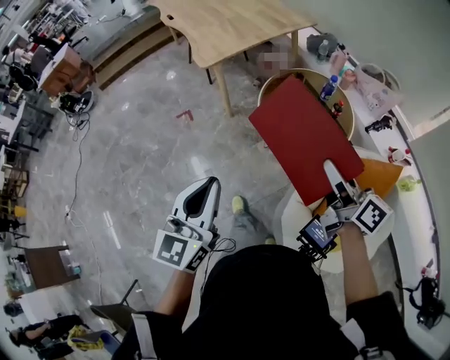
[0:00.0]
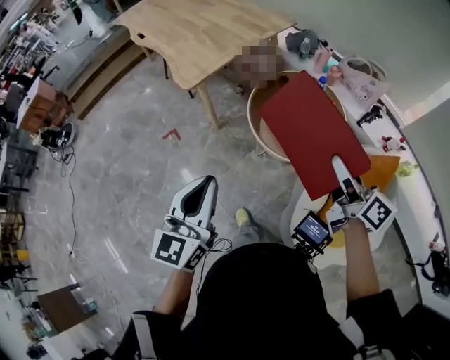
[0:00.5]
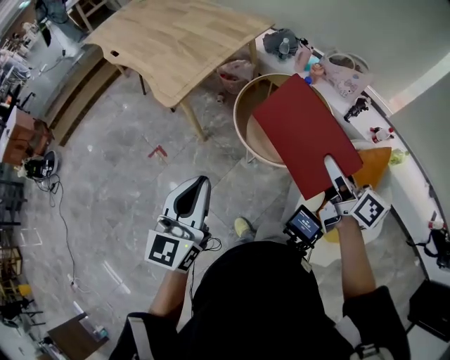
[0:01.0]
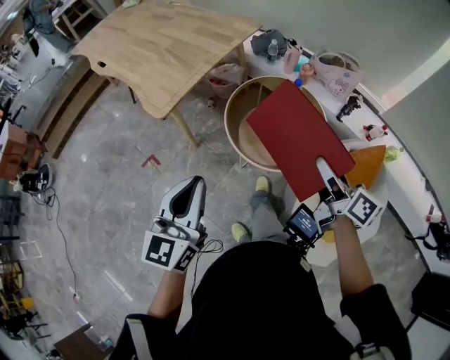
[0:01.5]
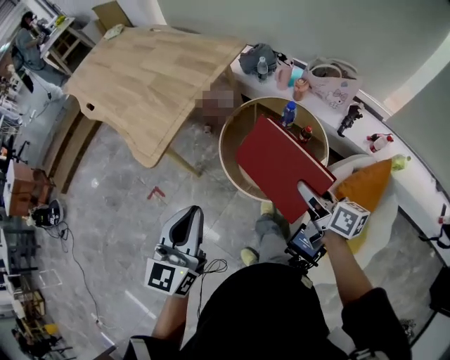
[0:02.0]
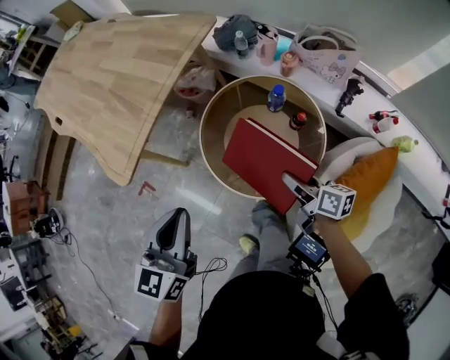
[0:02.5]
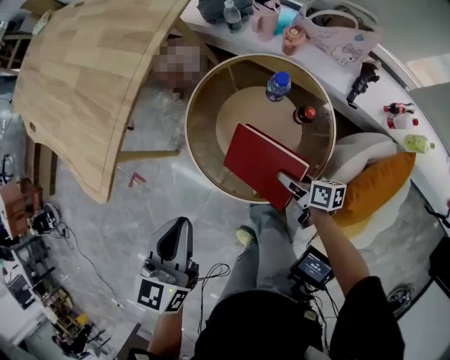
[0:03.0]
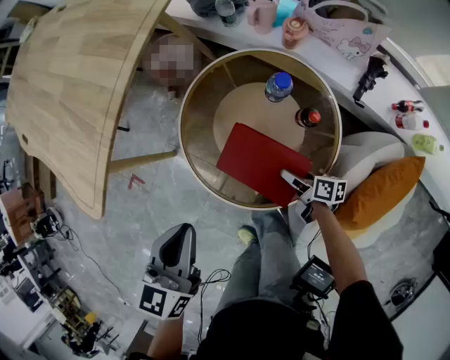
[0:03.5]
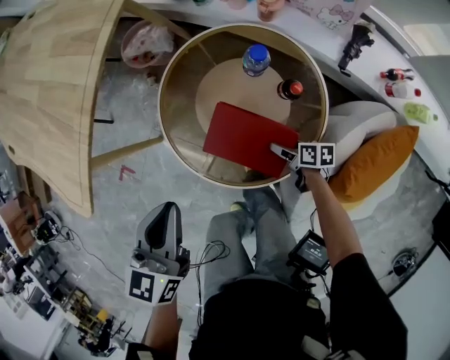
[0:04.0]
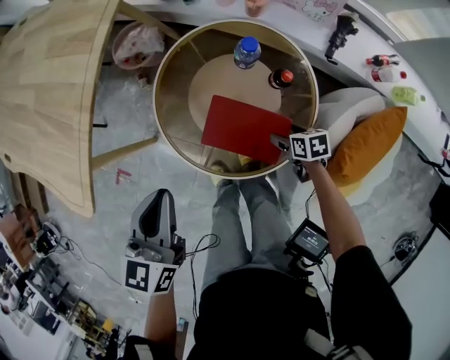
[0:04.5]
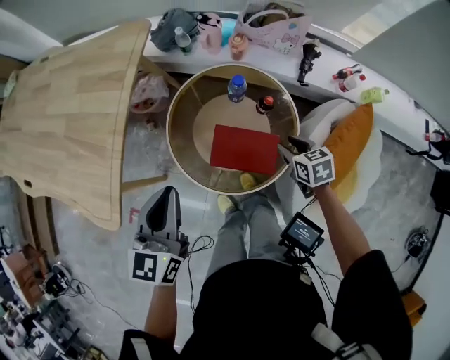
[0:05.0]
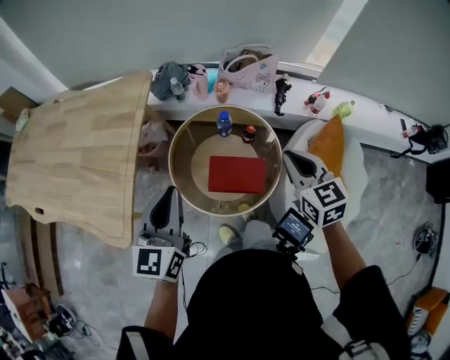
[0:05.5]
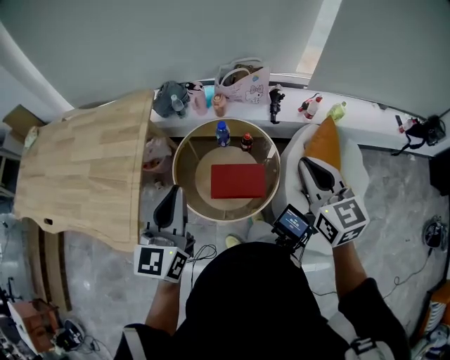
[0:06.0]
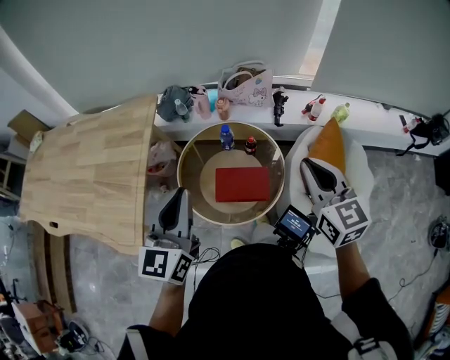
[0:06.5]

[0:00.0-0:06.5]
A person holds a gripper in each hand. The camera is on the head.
0:00.0 to 0:02.0: The left gripper heads forward, covering approximately 30 cm, and changes its angle by roughly 20 degrees. The right gripper is displaced forward and downward by approximately 25 cm, and swivels approximately 20 degrees.
0:02.0 to 0:04.5: The left gripper is displaced forward, downward and to the right by about 30 cm, and swivels approximately 20 degrees, while the right gripper goes approximately 40 cm downward, tilts its fingers approximately 50 degrees downward, and opens up.
0:04.5 to 0:06.5: The right gripper moves upward, roughly 60 cm, angles its fingers upward, by about 50 degrees, and closes its fingers, while the left gripper heads upward, covering some 25 cm, and swivels approximately 30 degrees.

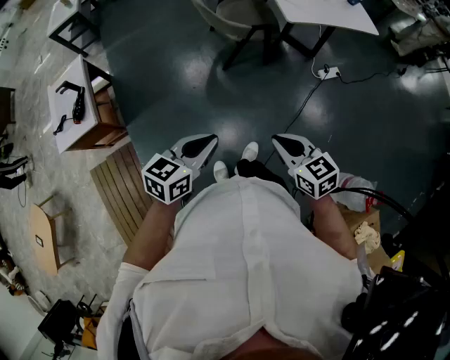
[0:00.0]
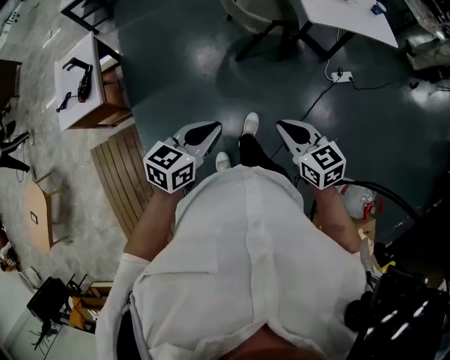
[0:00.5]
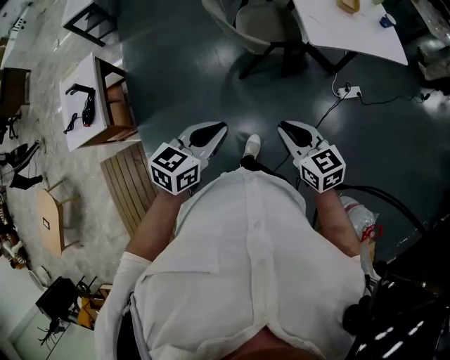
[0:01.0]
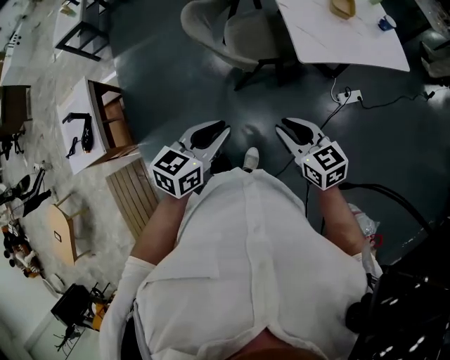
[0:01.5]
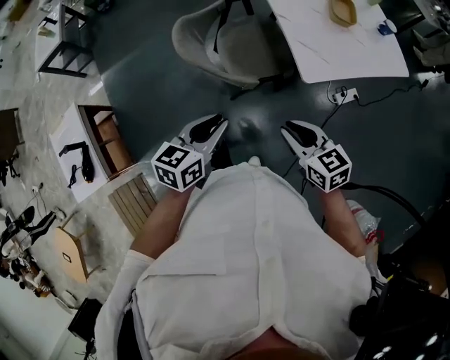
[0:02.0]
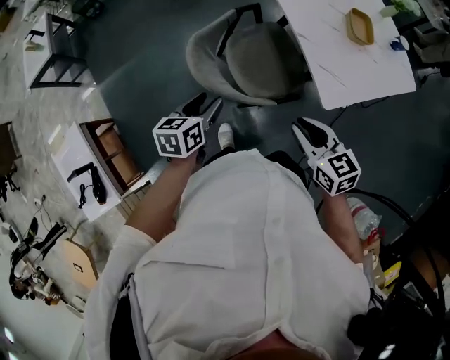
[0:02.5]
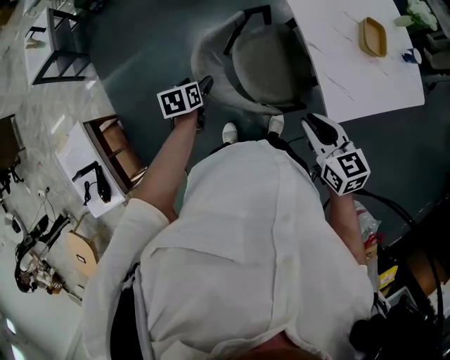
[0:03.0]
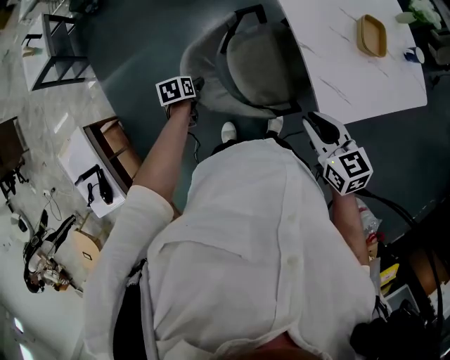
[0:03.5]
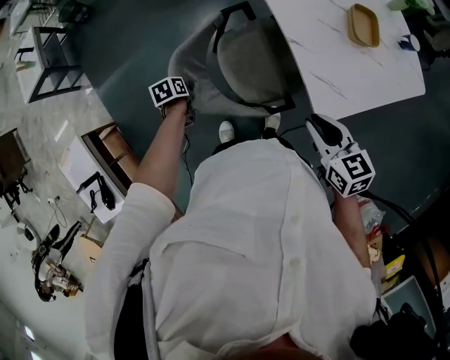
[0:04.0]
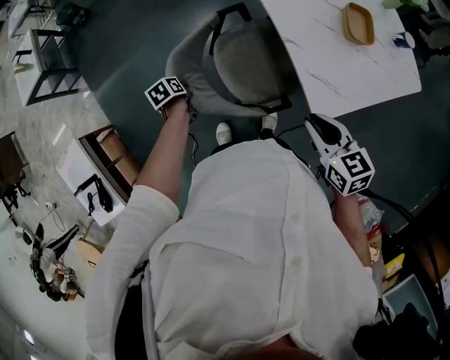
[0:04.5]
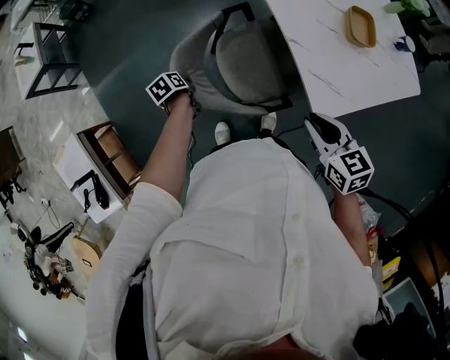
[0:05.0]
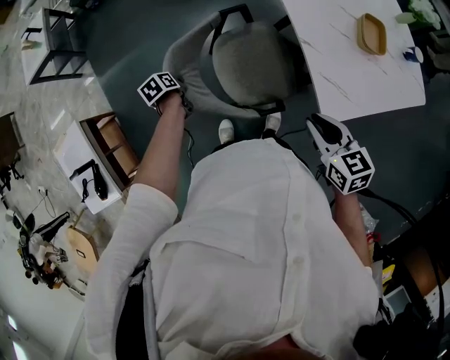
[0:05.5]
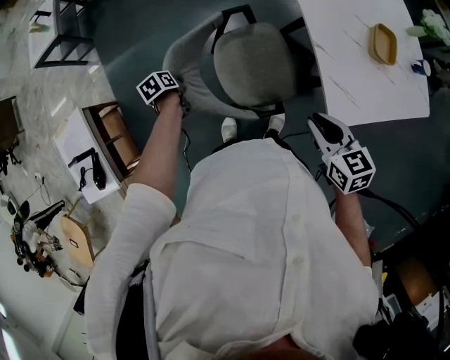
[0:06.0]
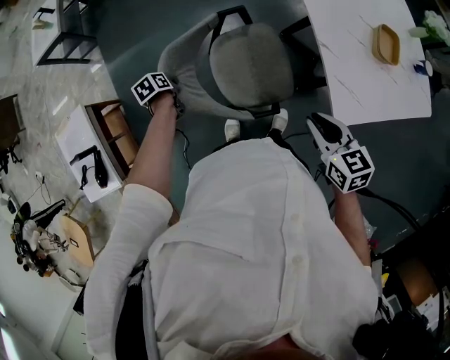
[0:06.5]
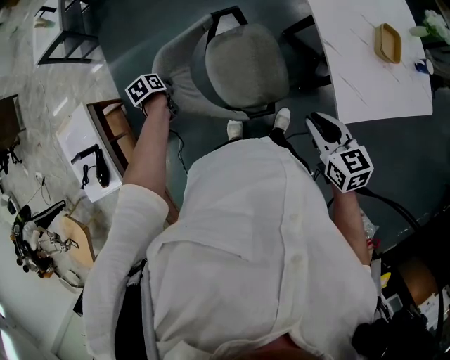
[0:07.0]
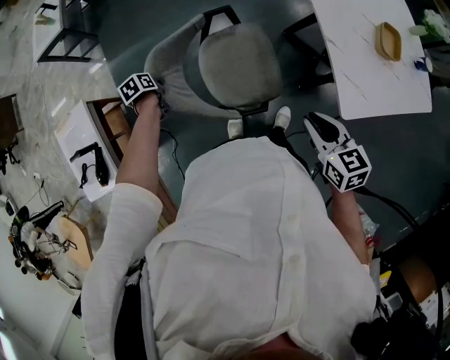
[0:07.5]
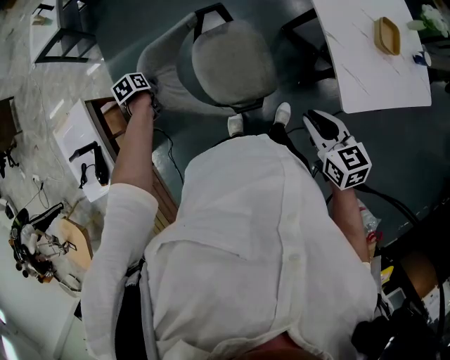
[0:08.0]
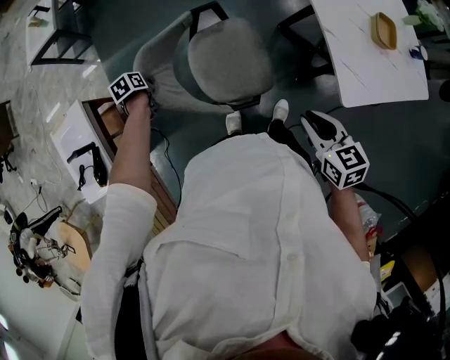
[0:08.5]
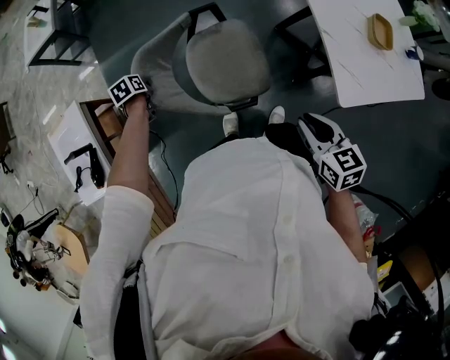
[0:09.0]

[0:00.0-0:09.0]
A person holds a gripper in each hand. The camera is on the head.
0:00.0 to 0:02.0: The pair of grippers is taken forward, roughly 40 cm.
0:02.0 to 0:04.5: The right gripper shifts roughly 20 cm forward; the left gripper travels forward, downward and to the left by roughly 50 cm, points its fingers roughly 40 degrees further downward, and opens, then closes once more.
0:04.5 to 0:07.0: The left gripper moves to the left, about 20 cm, while the right gripper goes about 10 cm to the left.
0:07.0 to 0:09.0: The right gripper travels backward and to the left by some 5 cm. Meanwhile the left gripper goes roughly 10 cm to the left.

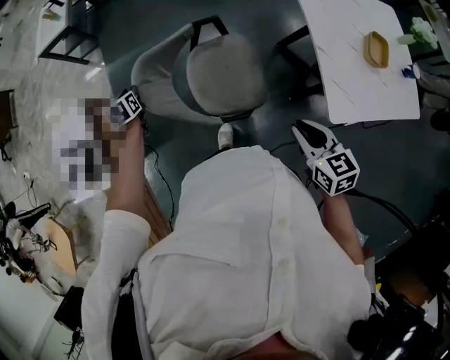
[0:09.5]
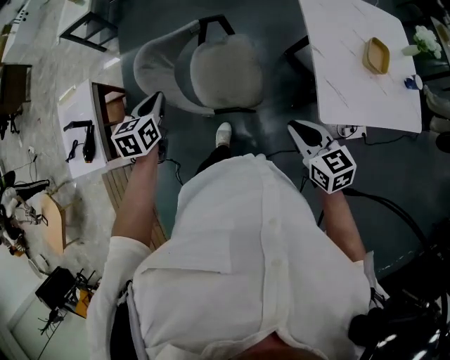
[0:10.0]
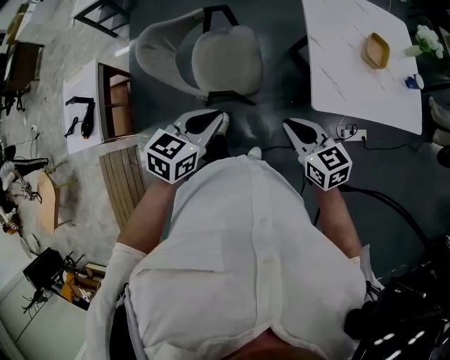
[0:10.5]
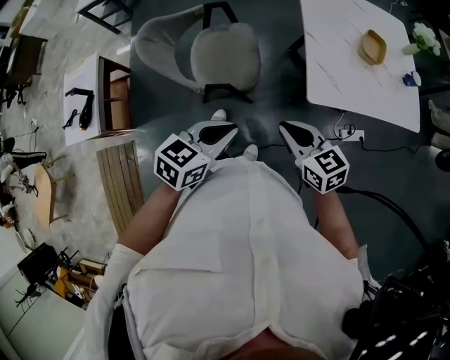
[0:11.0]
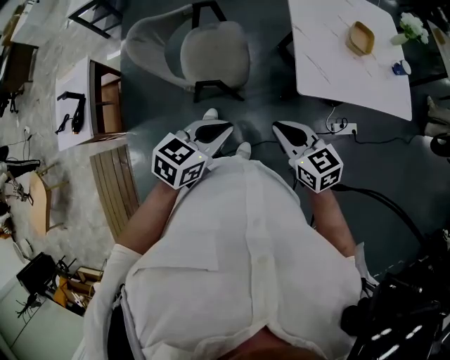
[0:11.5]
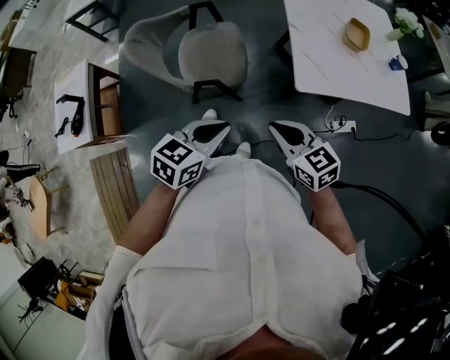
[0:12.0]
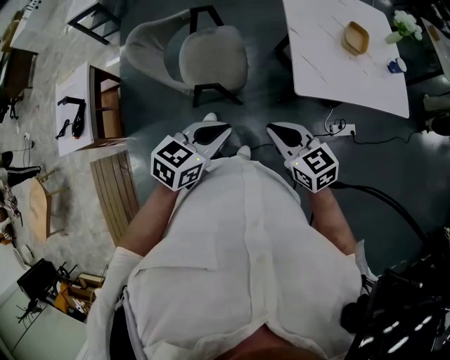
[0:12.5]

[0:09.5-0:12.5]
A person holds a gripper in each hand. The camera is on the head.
0:09.5 to 0:11.0: The right gripper goes about 15 cm backward and to the right, while the left gripper shifts about 60 cm backward, to the right and upward, turns by roughly 50 degrees, and closes.
0:11.0 to 0:12.5: The grippers stay close to where they were, moving slightly.

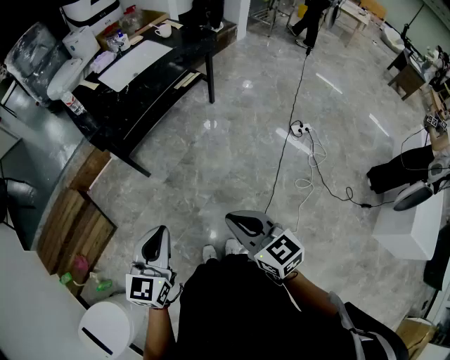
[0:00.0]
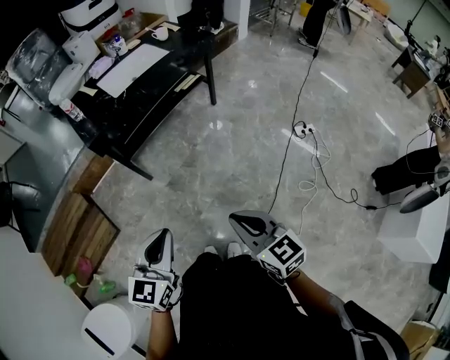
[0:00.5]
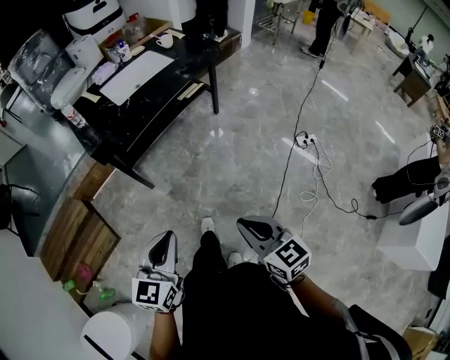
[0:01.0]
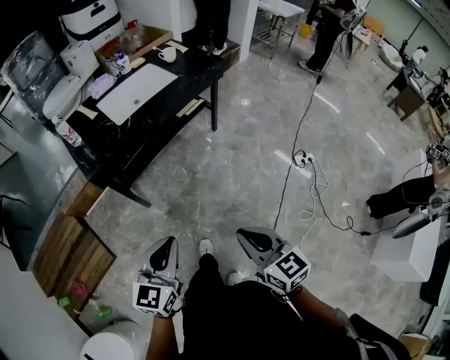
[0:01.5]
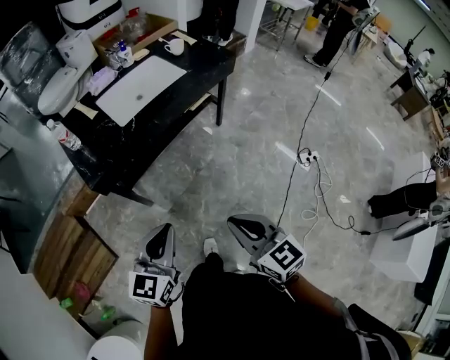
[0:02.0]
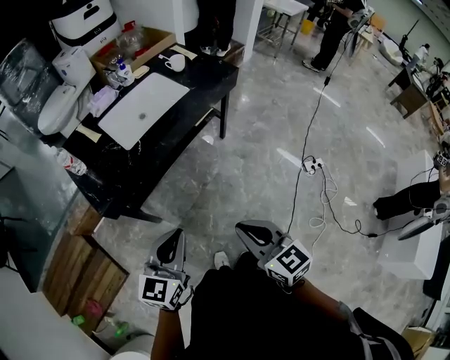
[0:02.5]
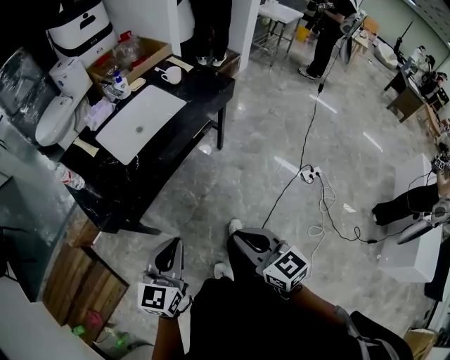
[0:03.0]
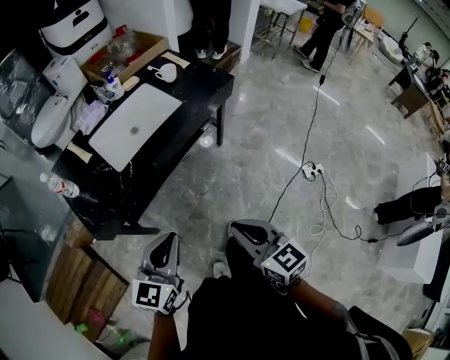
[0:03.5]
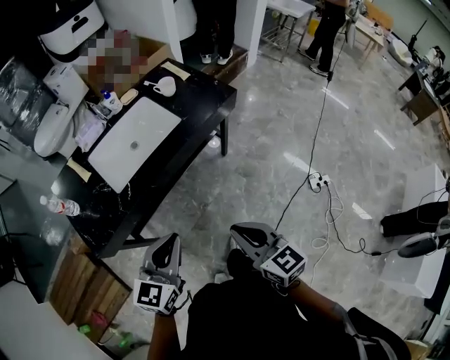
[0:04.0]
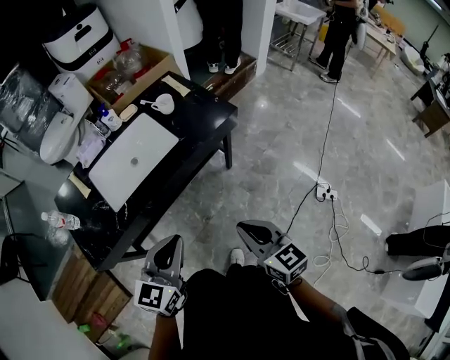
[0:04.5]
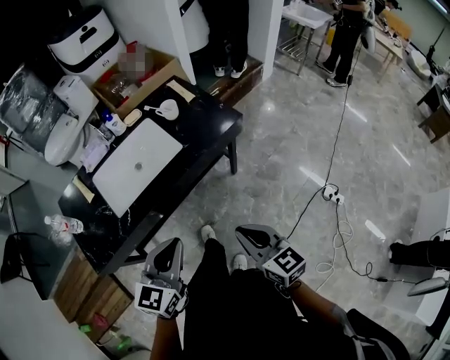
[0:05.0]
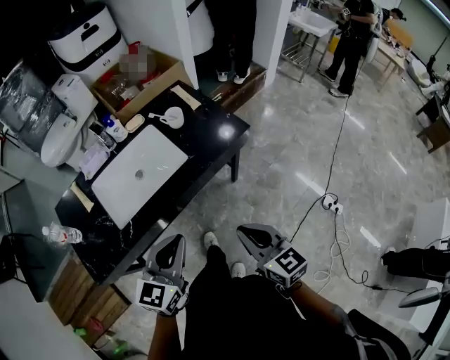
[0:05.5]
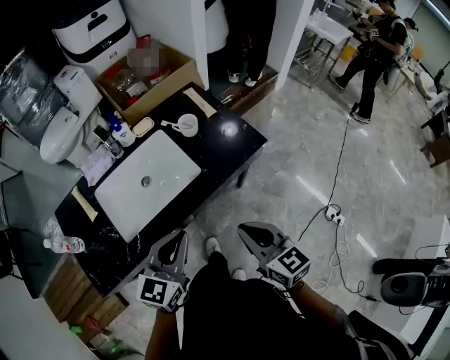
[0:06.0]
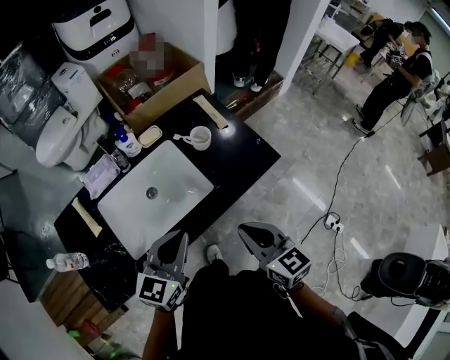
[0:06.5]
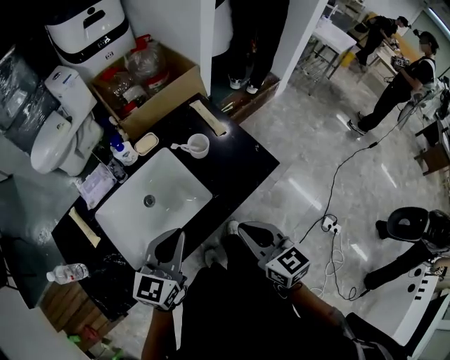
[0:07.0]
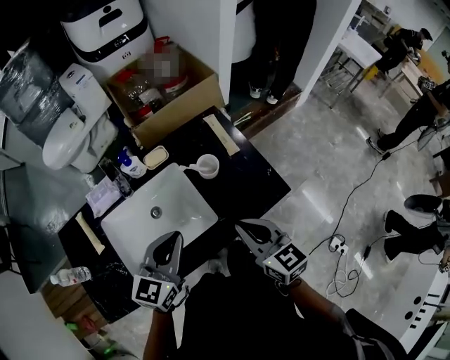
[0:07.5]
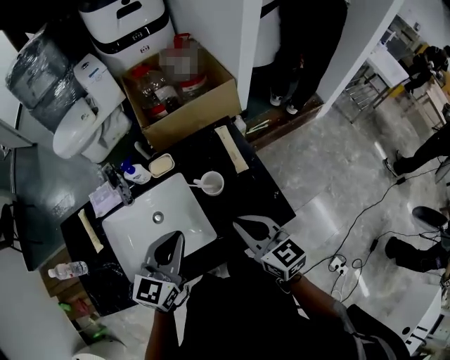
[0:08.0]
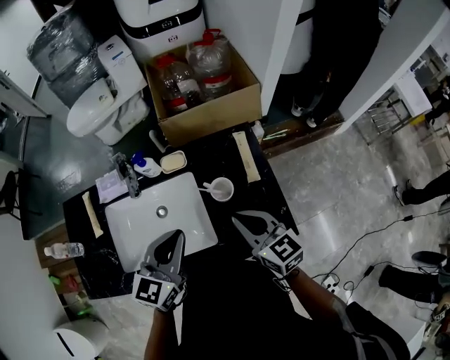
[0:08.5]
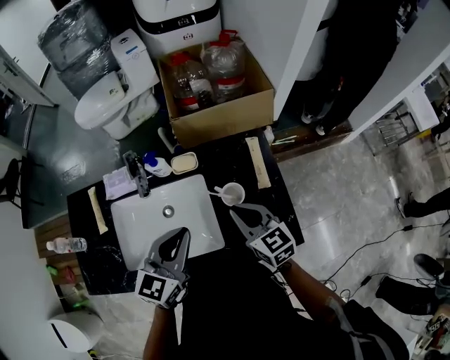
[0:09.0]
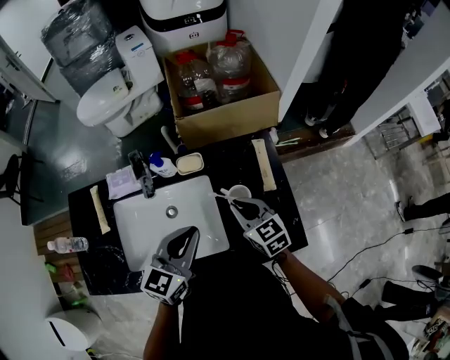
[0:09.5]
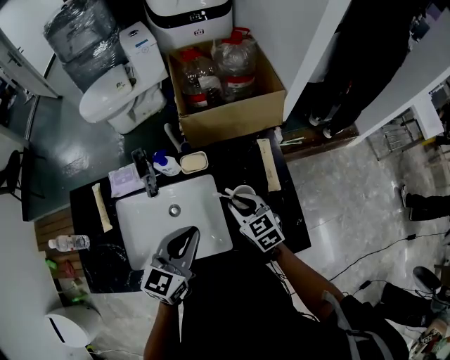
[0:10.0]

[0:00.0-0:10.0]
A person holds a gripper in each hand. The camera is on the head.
0:00.0 to 0:02.0: Both grippers move forward, roughly 25 cm.
0:02.0 to 0:04.0: The grippers both shift forward by some 25 cm.
0:04.0 to 0:06.0: Both grippers travel together forward, roughly 25 cm.
0:06.0 to 0:08.0: Both grippers move forward, about 25 cm.
0:08.0 to 0:10.0: The right gripper goes about 20 cm forward, downward and to the left, and swivels approximately 30 degrees, while the left gripper moves roughly 5 cm.
